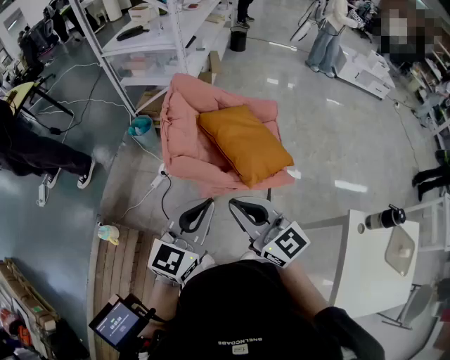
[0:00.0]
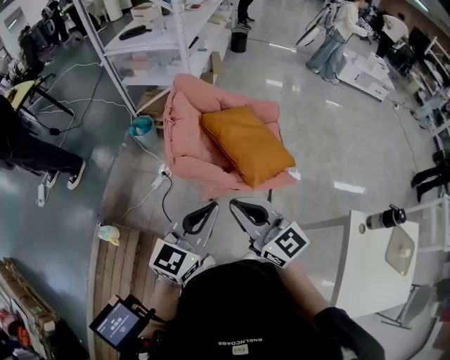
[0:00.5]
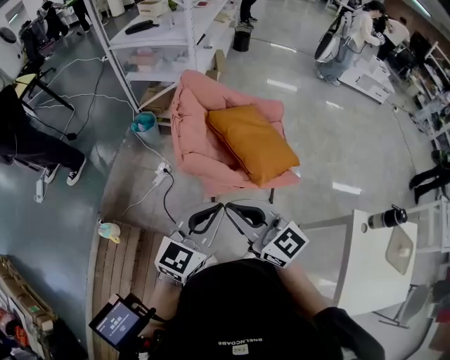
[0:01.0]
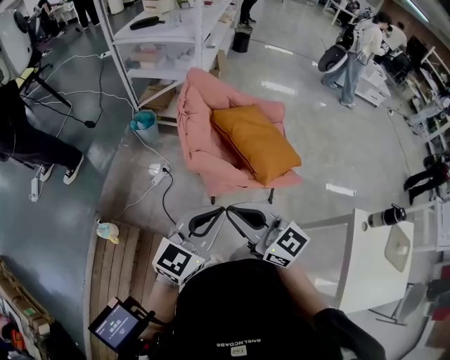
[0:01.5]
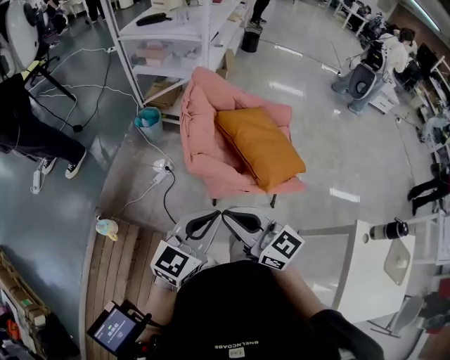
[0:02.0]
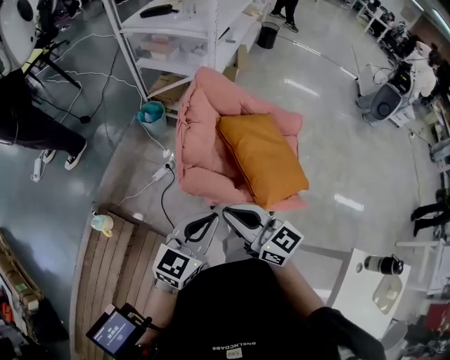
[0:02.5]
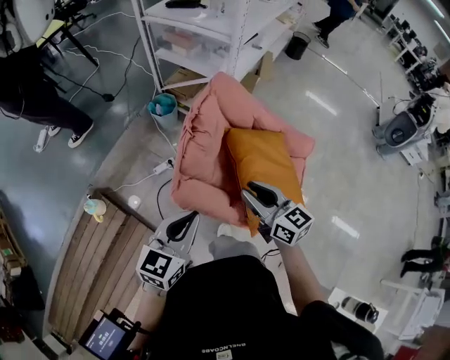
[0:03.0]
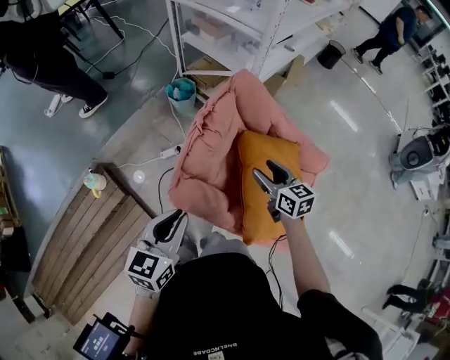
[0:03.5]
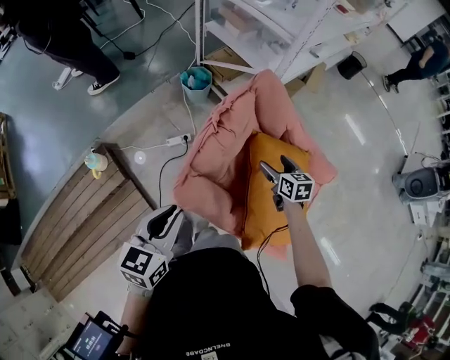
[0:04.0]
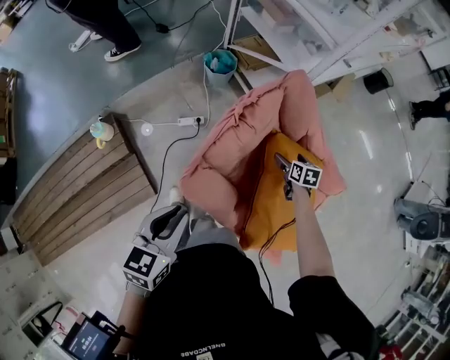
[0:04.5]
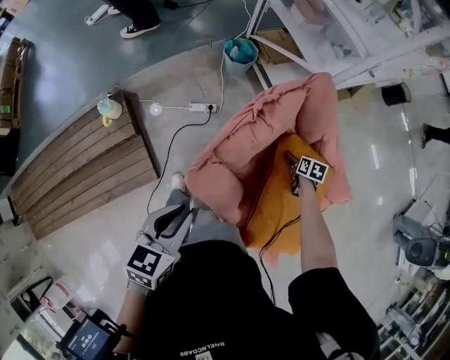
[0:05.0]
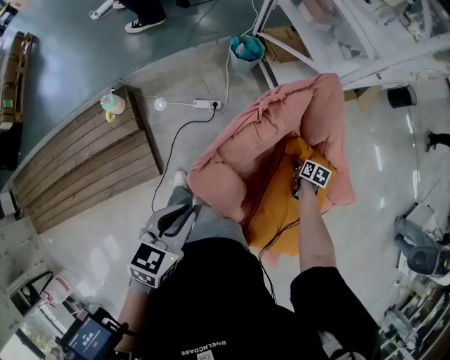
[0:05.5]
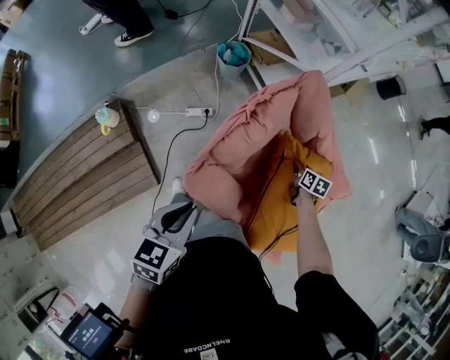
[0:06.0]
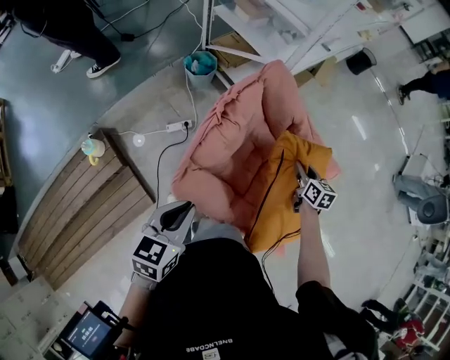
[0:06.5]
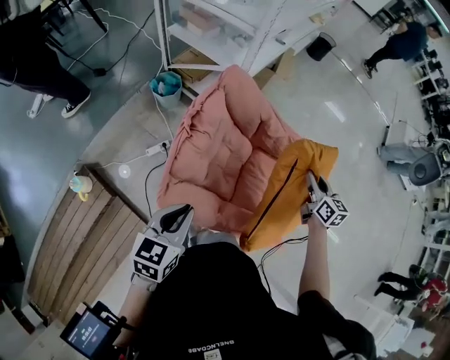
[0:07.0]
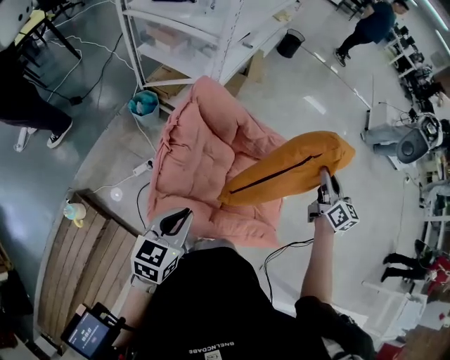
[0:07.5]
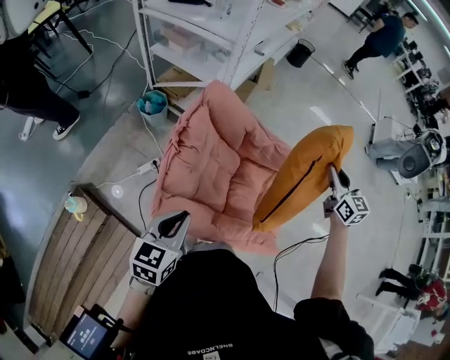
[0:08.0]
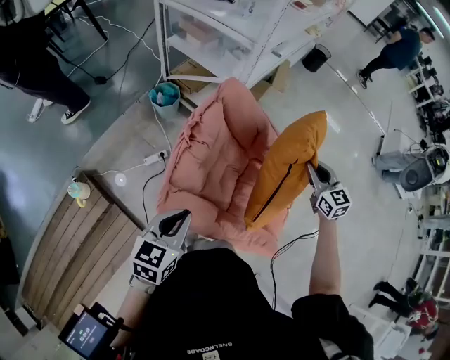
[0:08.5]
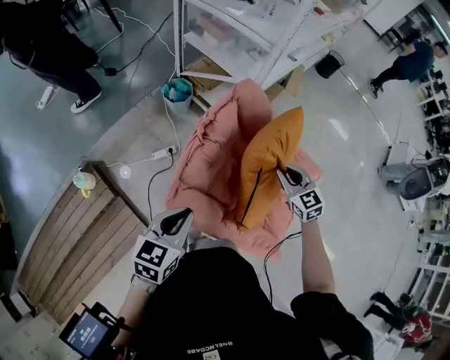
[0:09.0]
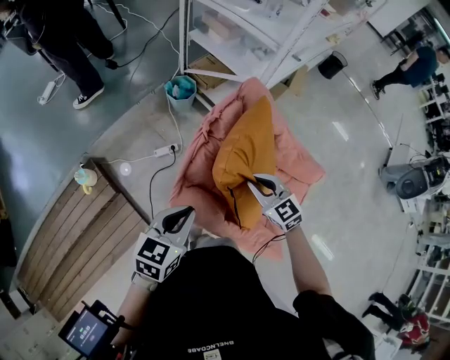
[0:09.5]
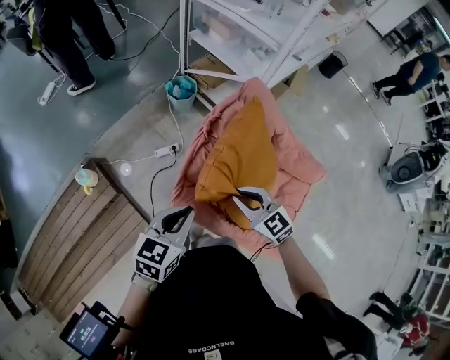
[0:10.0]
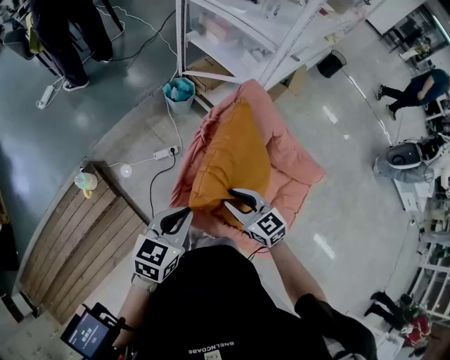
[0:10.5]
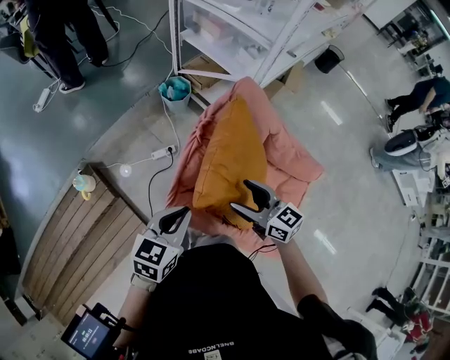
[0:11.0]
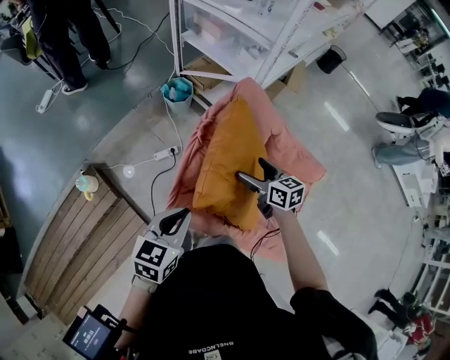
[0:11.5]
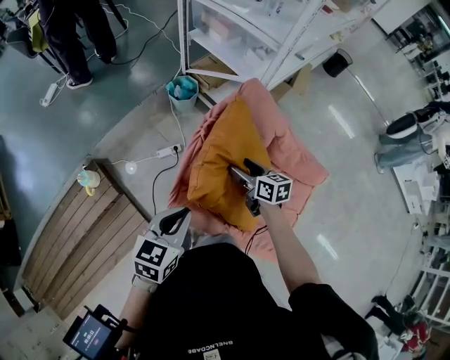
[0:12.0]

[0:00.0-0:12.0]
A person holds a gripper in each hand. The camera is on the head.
0.0 to 2.0 s: The left gripper goes roughly 10 cm to the left and downward. The right gripper moves to the left, roughly 10 cm.
2.0 to 4.0 s: The right gripper shifts roughly 60 cm forward, to the right and downward, points its fingers some 40 degrees further downward, and opens up. The left gripper shifts roughly 20 cm forward, and rotates roughly 50 degrees.
4.0 to 6.0 s: The left gripper shifts about 5 cm downward. Meanwhile the right gripper goes about 15 cm downward and to the right, and closes.
6.0 to 8.0 s: The left gripper shifts by about 10 cm, and changes its angle by roughly 30 degrees. The right gripper is displaced upward by approximately 35 cm, and tilts its fingers about 40 degrees upward.
8.0 to 10.0 s: The right gripper changes place by approximately 40 cm, and rotates about 50 degrees. Meanwhile the left gripper changes place by about 5 cm.
10.0 to 12.0 s: The right gripper moves forward and downward, about 15 cm, rotates around the line of its fingers by about 40 degrees, clockwise from behind, and opens up.

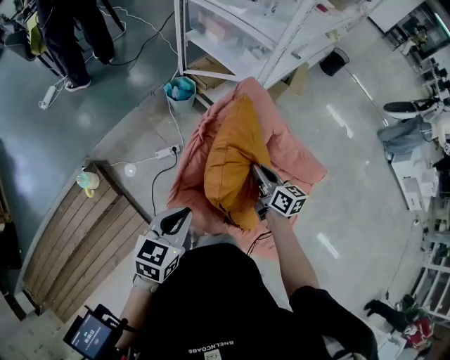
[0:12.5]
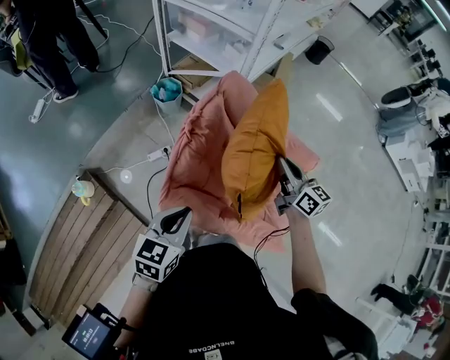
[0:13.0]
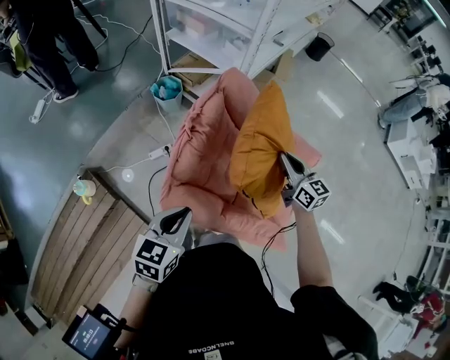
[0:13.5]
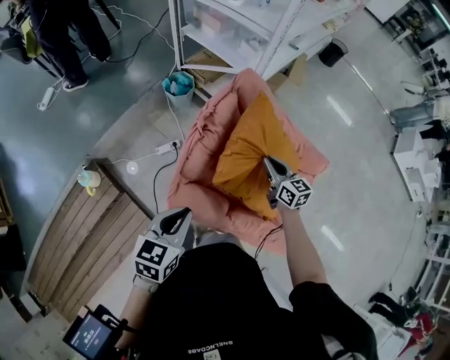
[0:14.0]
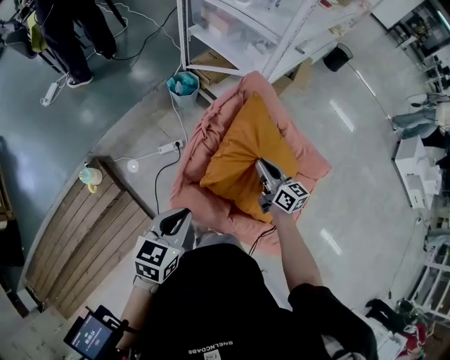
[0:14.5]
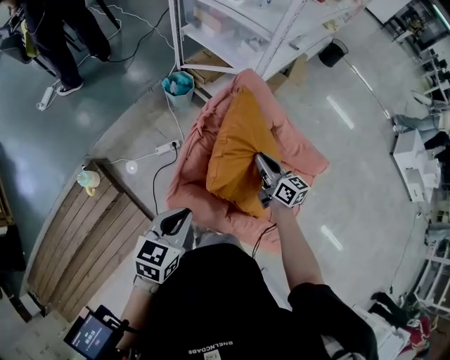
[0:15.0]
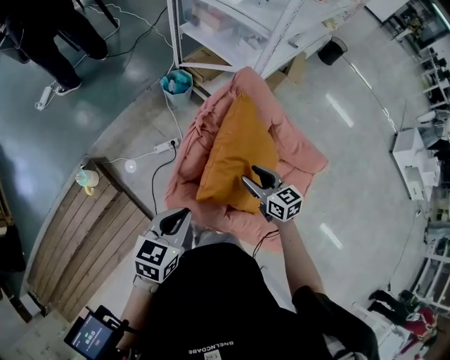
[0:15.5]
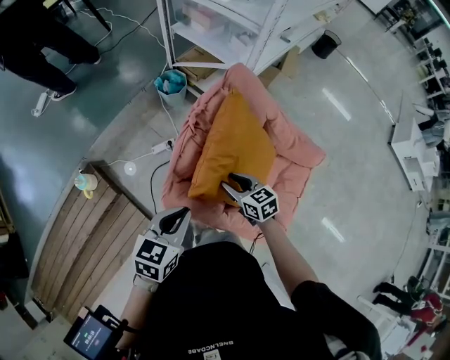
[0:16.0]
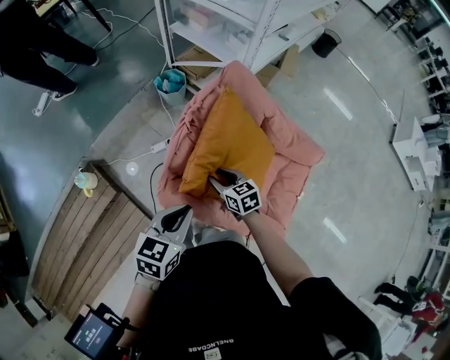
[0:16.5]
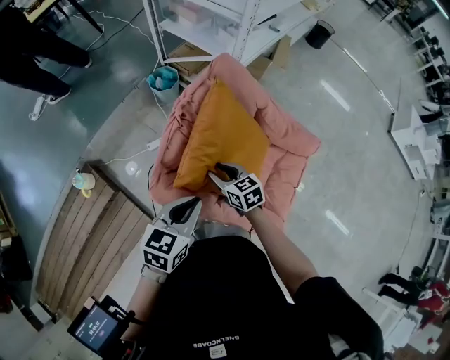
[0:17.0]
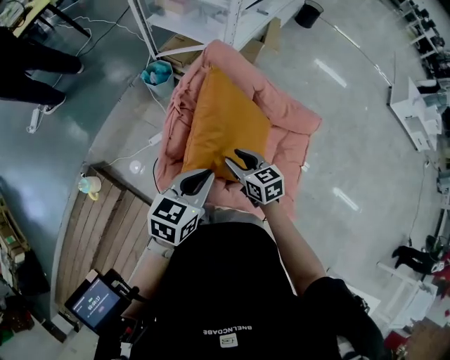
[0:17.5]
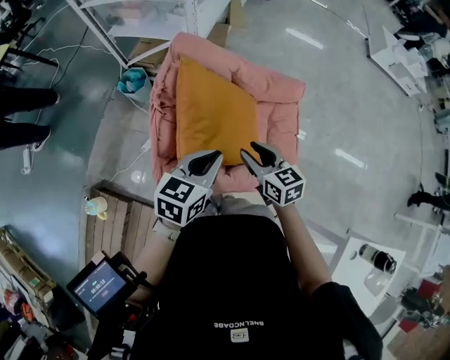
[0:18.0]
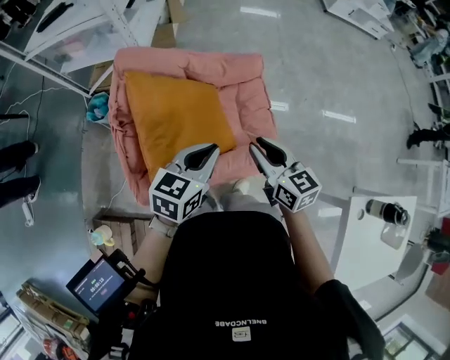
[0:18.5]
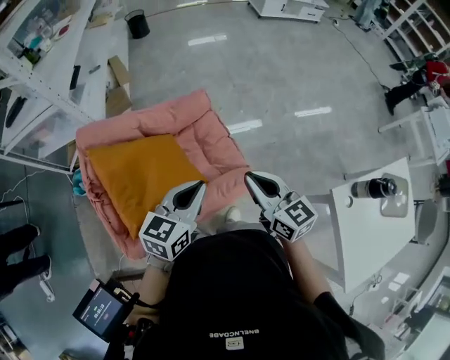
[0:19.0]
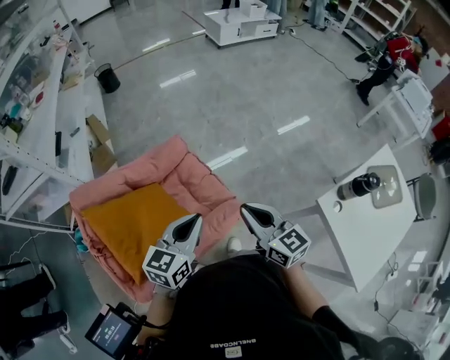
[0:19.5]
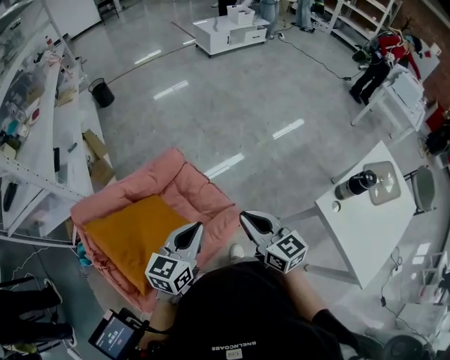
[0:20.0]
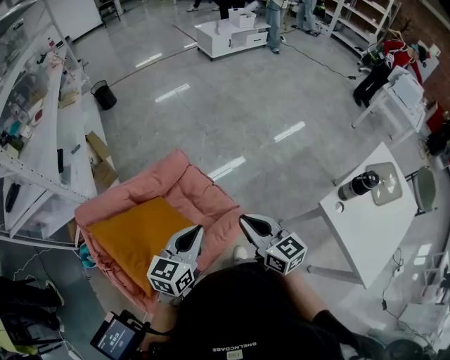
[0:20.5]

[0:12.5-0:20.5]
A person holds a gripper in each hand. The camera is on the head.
12.5 to 14.5 s: The right gripper travels upward and back again, roughly 10 cm each way.
14.5 to 16.5 s: The right gripper shifts roughly 15 cm to the left, downward and backward, and changes its angle by about 30 degrees.
16.5 to 18.5 s: The right gripper moves roughly 30 cm, and swivels approximately 50 degrees. The left gripper ends up about 20 cm from where it was, and swivels approximately 40 degrees.
18.5 to 20.5 s: Both grippers move to the right and upward, roughly 20 cm. The right gripper changes its angle by about 30 degrees. Meanwhile the left gripper changes its angle by approximately 20 degrees.

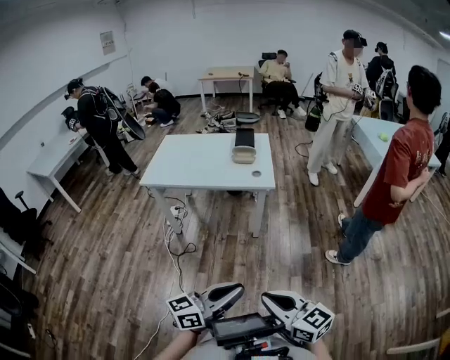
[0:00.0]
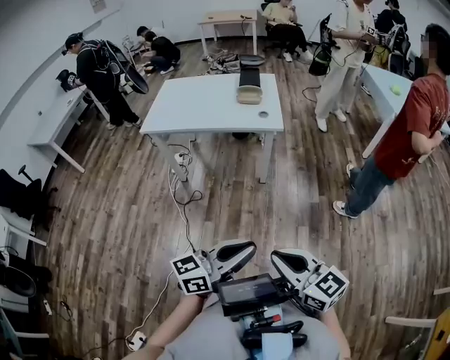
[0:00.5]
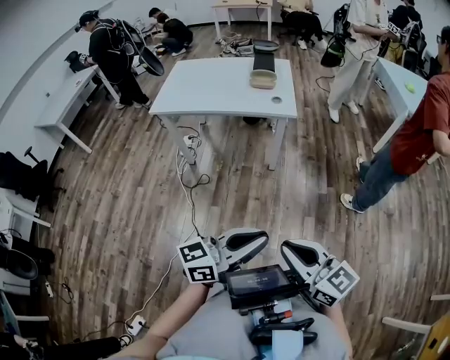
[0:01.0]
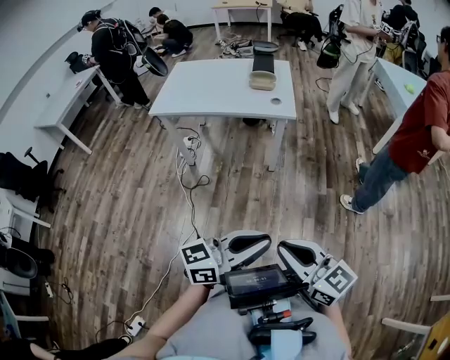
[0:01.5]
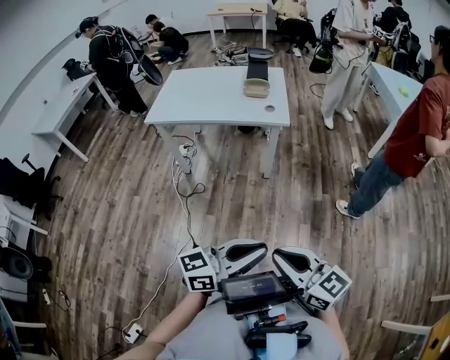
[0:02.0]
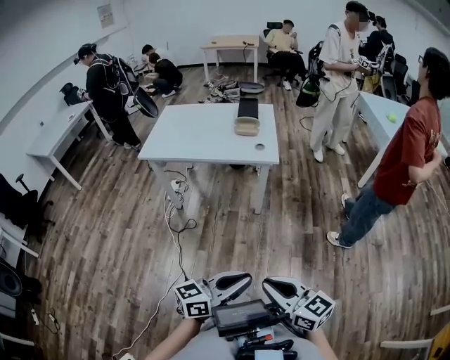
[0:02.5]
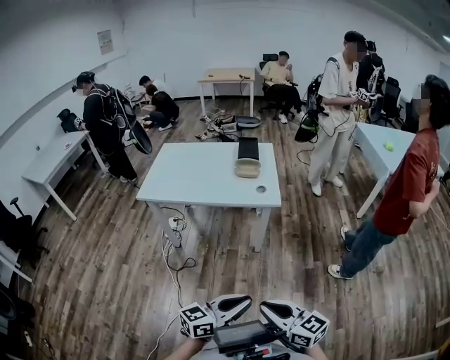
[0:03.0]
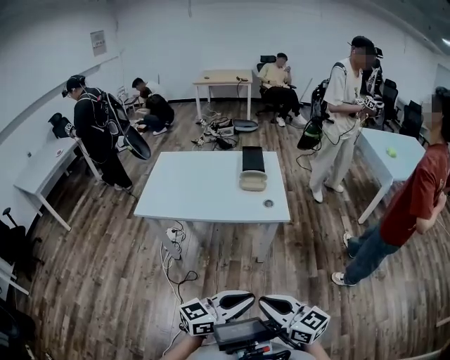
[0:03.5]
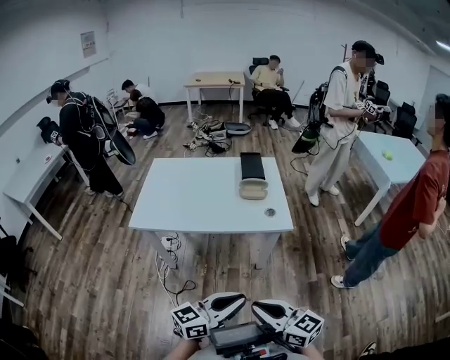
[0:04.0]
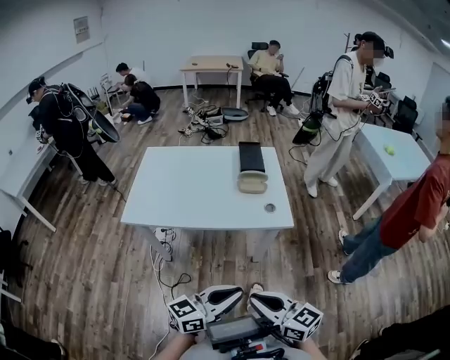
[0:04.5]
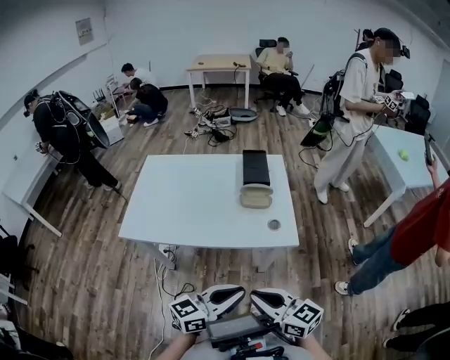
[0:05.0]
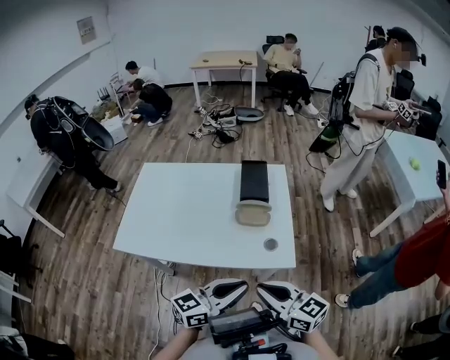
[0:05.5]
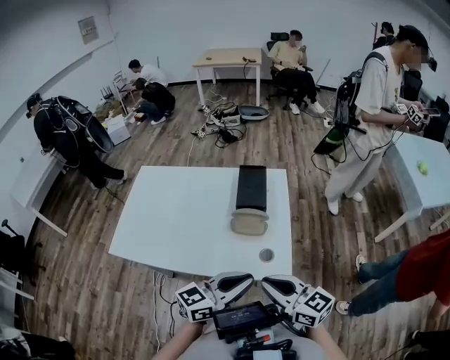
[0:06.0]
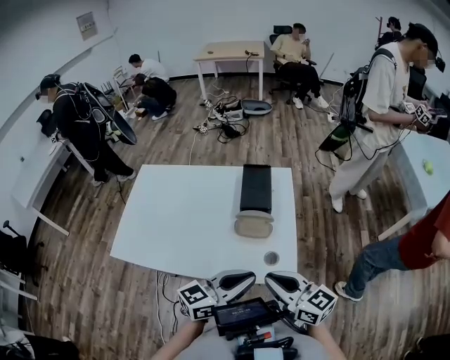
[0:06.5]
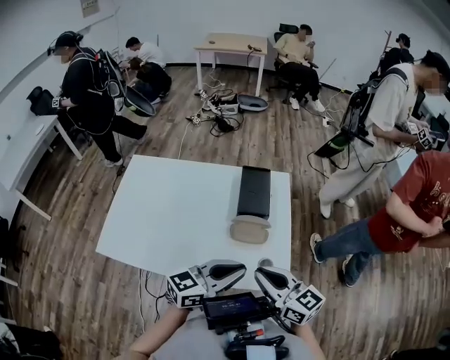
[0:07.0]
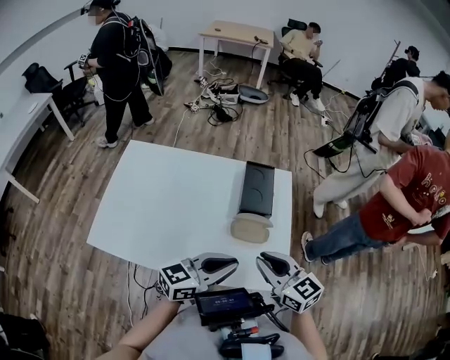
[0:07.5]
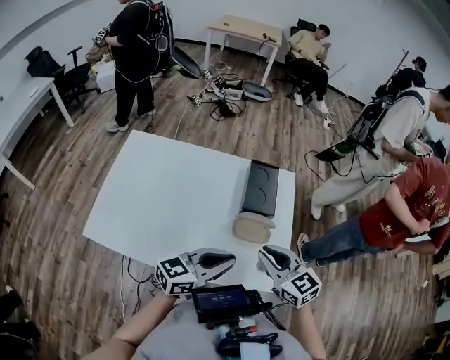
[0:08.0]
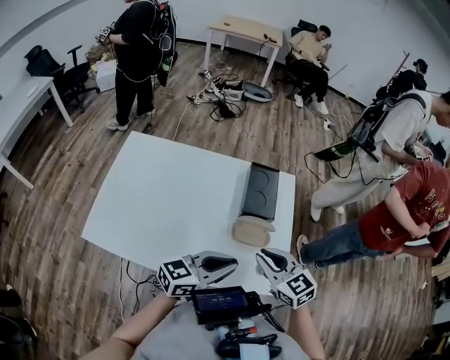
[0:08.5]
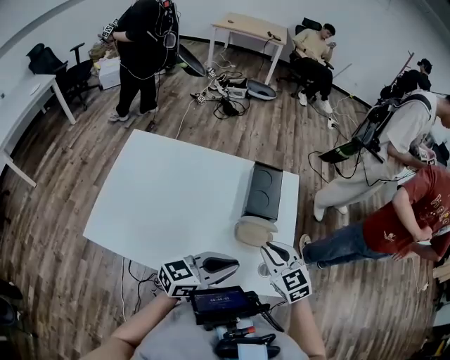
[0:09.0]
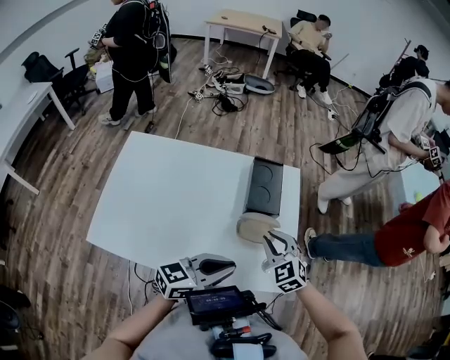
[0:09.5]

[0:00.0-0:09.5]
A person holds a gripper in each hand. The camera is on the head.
0.0 to 2.0 s: The grippers stay close to where they were, moving slightly.
2.0 to 4.0 s: Both grippers move forward and to the left, about 30 cm.
4.0 to 5.5 s: Both grippers travel together forward, roughly 30 cm.
5.5 to 7.5 s: Both grippers travel together forward, roughly 20 cm.
7.5 to 9.5 s: The right gripper moves forward and downward, about 10 cm, and turns by approximately 40 degrees.
